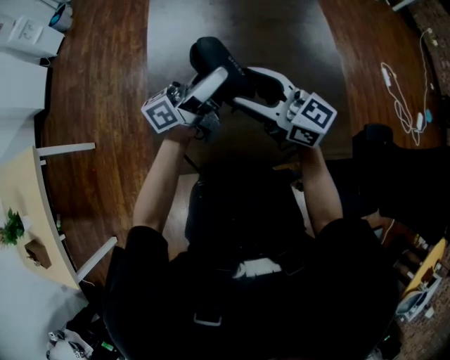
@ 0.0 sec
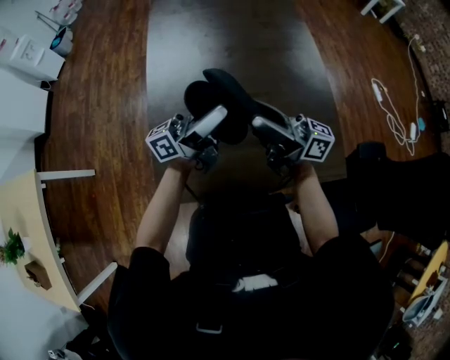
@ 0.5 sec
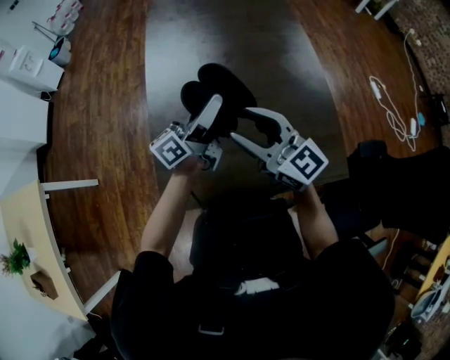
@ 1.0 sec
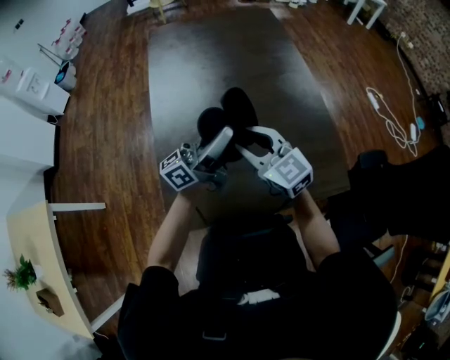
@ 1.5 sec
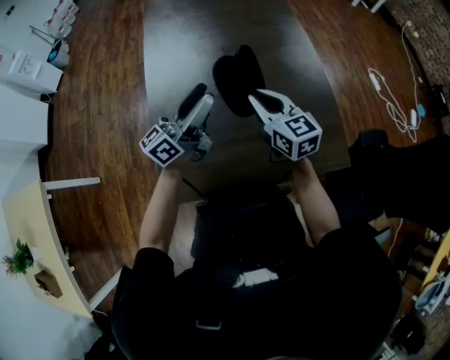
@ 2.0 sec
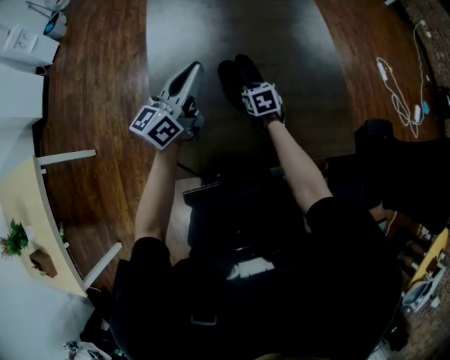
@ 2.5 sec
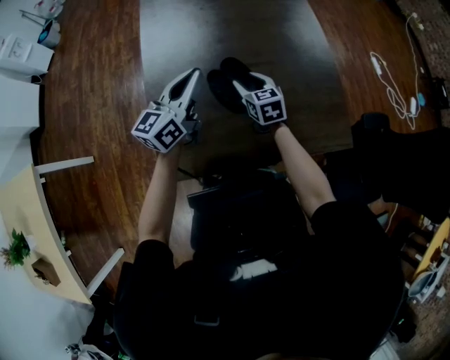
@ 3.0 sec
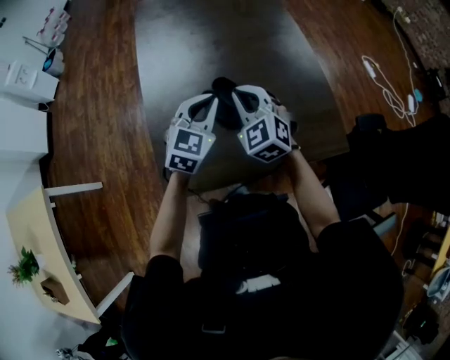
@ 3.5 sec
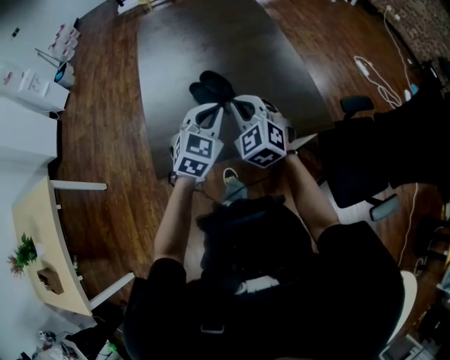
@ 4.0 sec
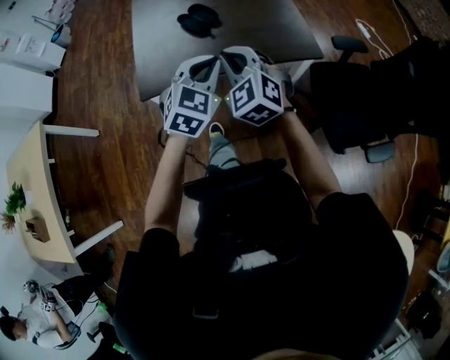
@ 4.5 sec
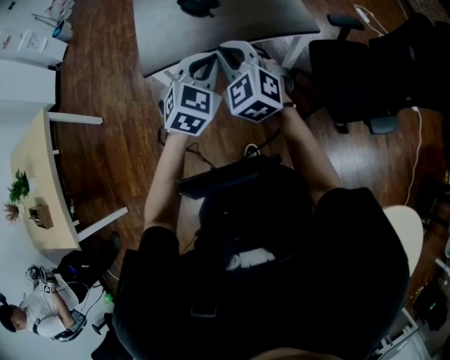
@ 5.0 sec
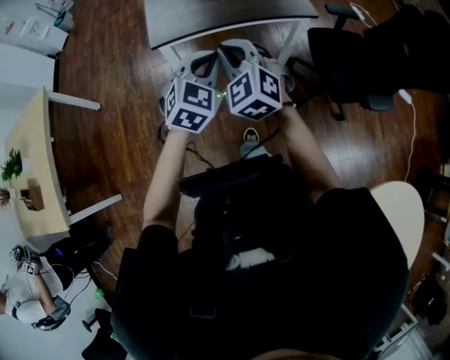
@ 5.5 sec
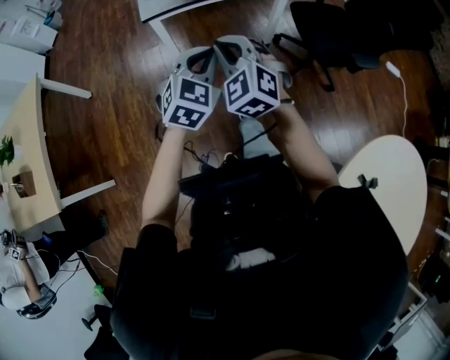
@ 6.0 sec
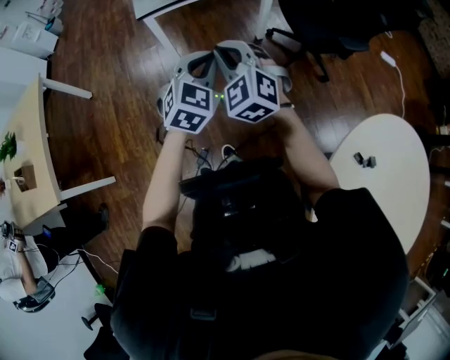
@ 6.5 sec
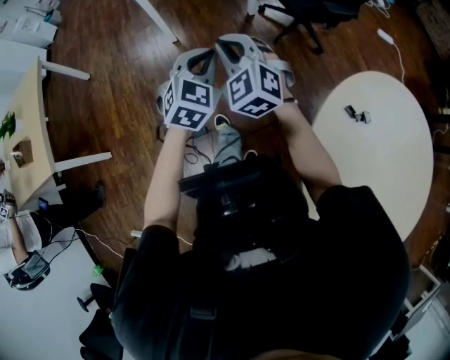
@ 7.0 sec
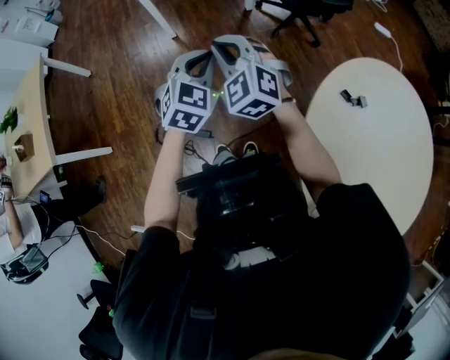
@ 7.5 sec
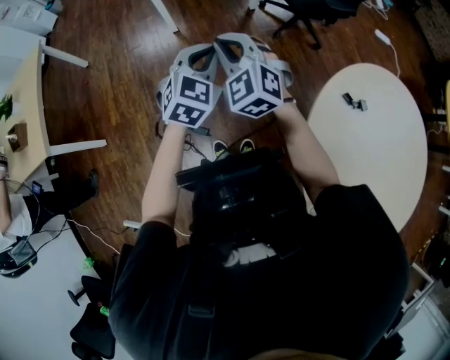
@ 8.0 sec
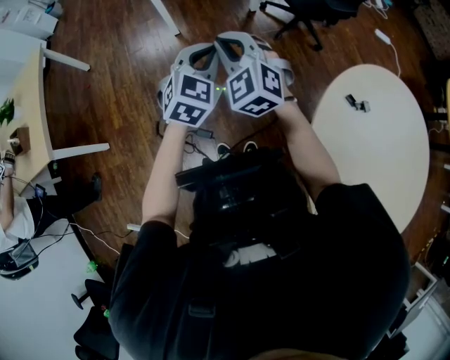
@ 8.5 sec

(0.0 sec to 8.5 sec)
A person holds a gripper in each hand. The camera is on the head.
0.0 sec - 2.0 sec: The right gripper heads to the right and forward, covering approximately 10 cm, rotates approximately 30 degrees, and closes up.
2.0 sec - 4.0 sec: The right gripper heads backward, covering roughly 20 cm, moves some 25 cm downward and comes back, turns by some 40 degrees, and opens, then closes again. The left gripper goes roughly 20 cm backward and to the right, angles its fingers downward, by approximately 50 degrees, and closes up.
4.0 sec - 6.5 sec: The pair of grippers is taken backward, about 70 cm.
6.5 sec - 8.5 sec: Both grippers move backward, roughly 20 cm.

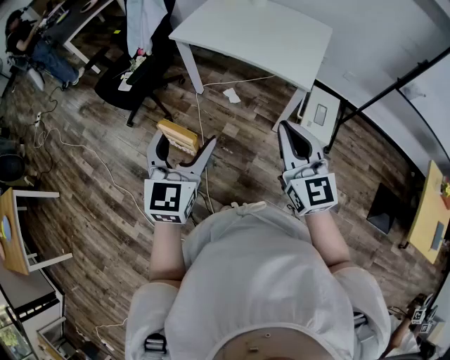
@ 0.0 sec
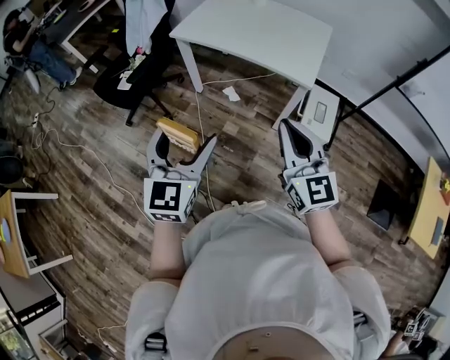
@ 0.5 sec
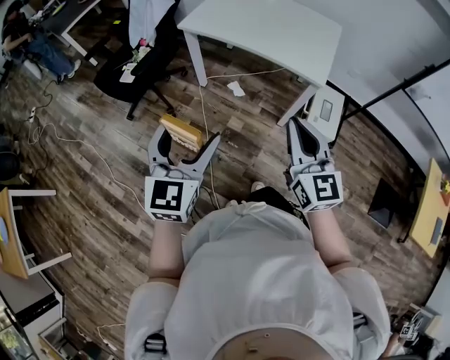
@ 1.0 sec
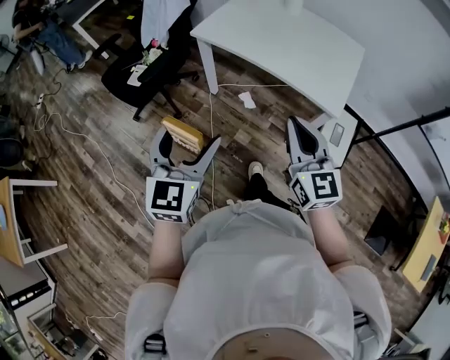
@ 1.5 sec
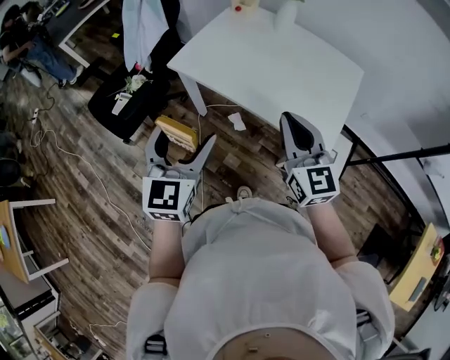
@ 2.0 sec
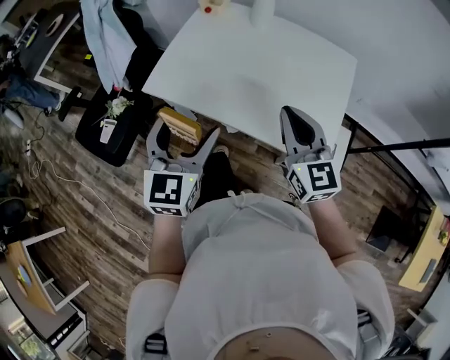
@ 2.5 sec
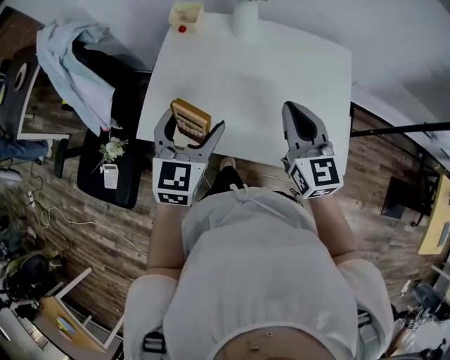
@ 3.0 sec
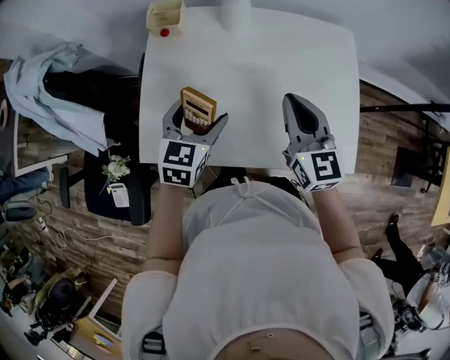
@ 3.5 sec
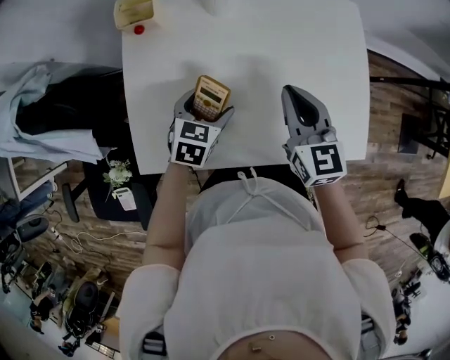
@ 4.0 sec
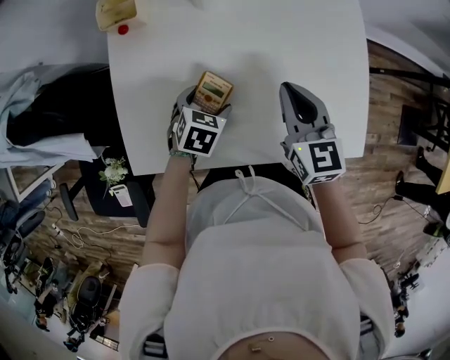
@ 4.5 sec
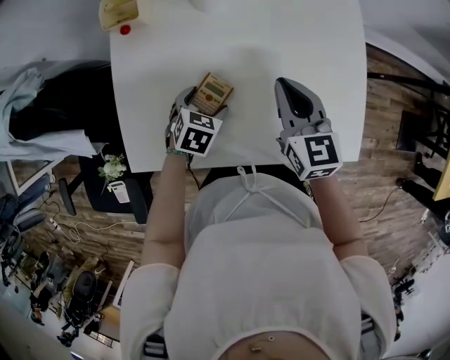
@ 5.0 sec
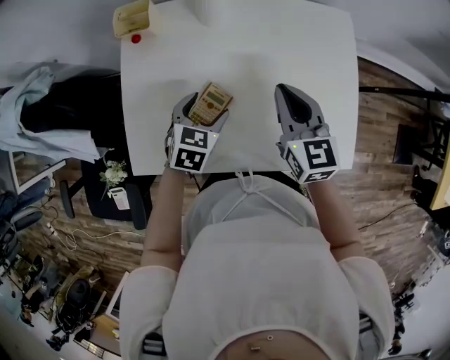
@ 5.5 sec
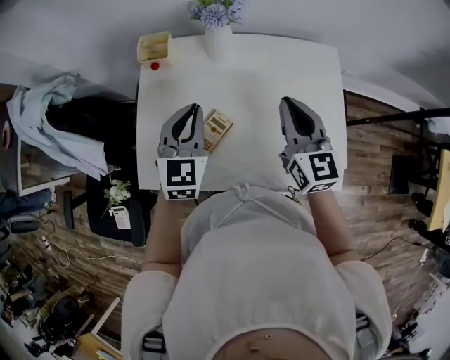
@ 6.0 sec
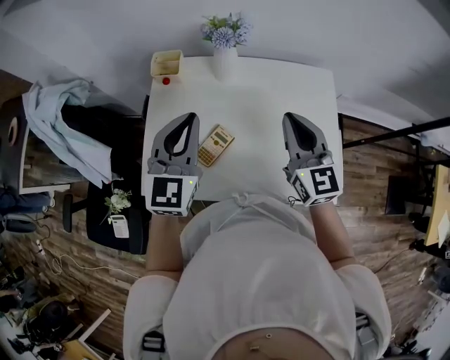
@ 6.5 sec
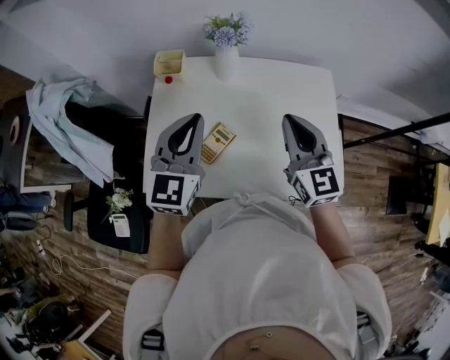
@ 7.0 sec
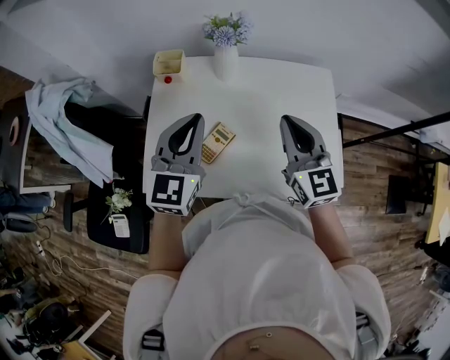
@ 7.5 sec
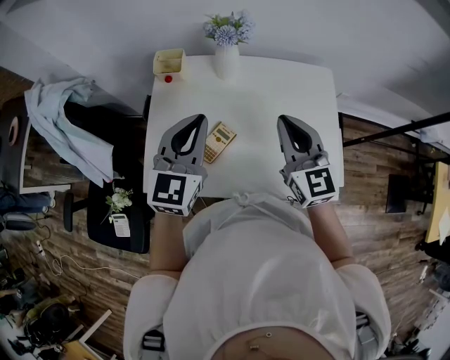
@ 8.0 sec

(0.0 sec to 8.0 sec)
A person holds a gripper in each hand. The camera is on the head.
0.0 sec - 2.0 sec: Both grippers move forward, roughly 35 cm.
2.0 sec - 4.0 sec: The right gripper ends up approximately 40 cm from where it was, and turns by approximately 40 degrees; the left gripper ends up some 60 cm from where it was, and tilts its fingers roughly 40 degrees downward.
4.0 sec - 6.0 sec: The right gripper heads upward, covering roughly 10 cm. Meanwhile the left gripper shifts about 20 cm upward, changes its angle by some 40 degrees, and closes up.
6.0 sec - 8.0 sec: The right gripper ends up roughly 5 cm from where it was, while the left gripper heads upward, covering roughly 10 cm.

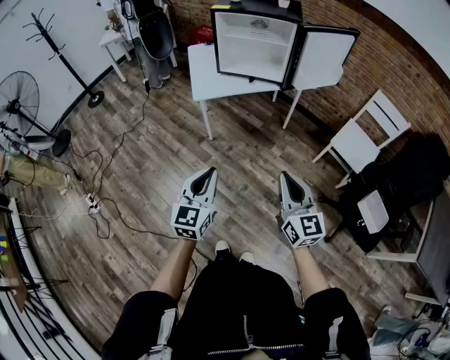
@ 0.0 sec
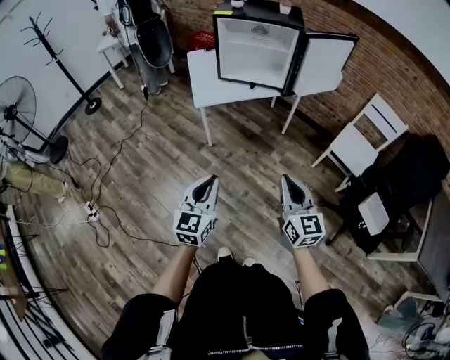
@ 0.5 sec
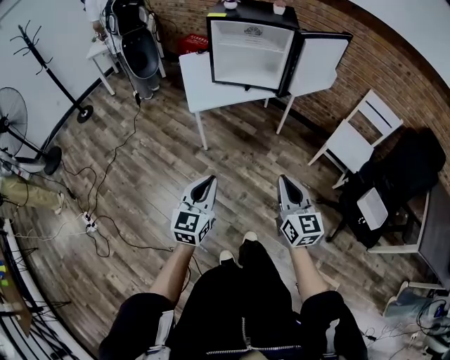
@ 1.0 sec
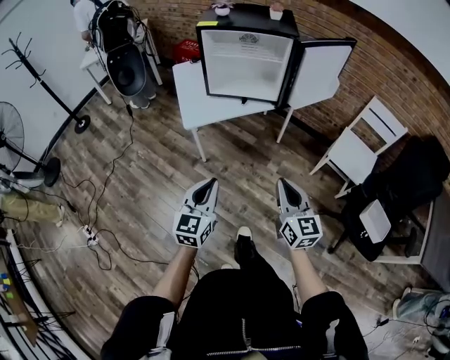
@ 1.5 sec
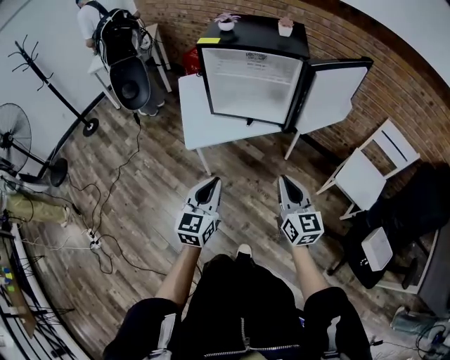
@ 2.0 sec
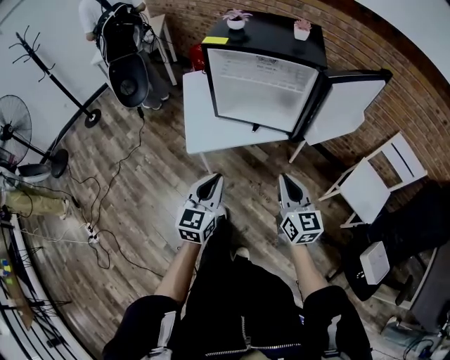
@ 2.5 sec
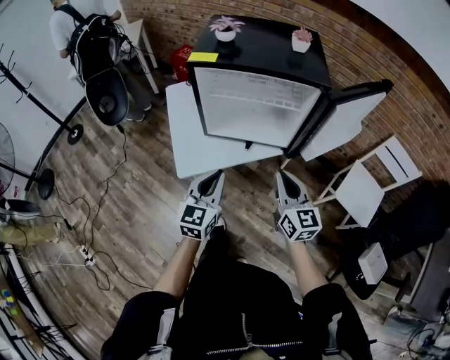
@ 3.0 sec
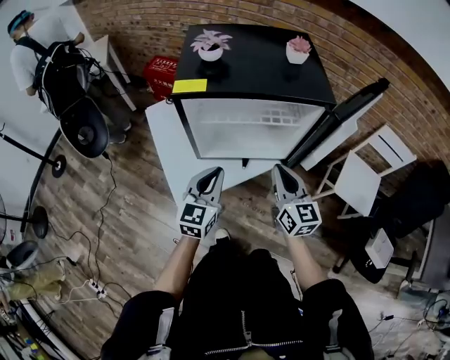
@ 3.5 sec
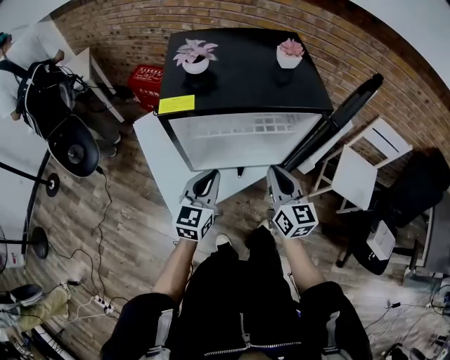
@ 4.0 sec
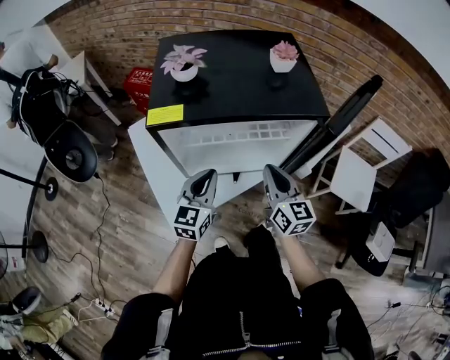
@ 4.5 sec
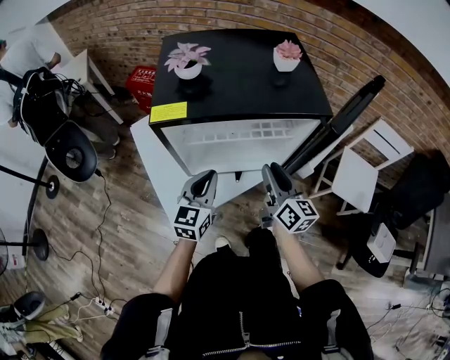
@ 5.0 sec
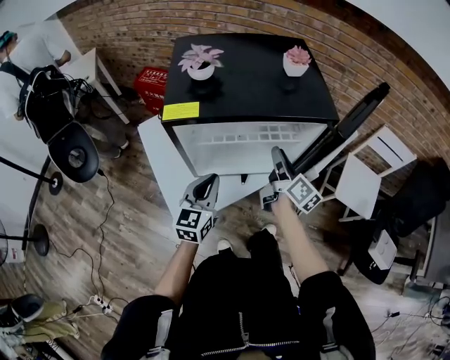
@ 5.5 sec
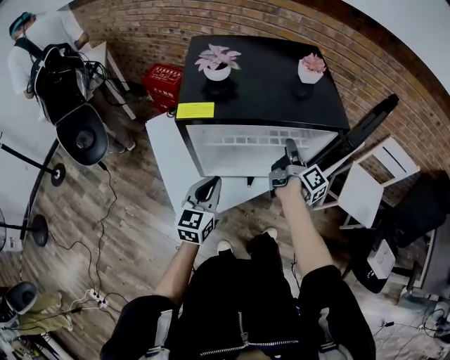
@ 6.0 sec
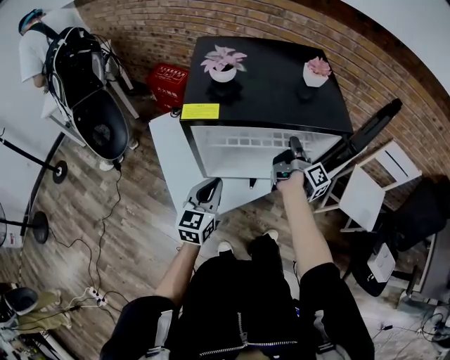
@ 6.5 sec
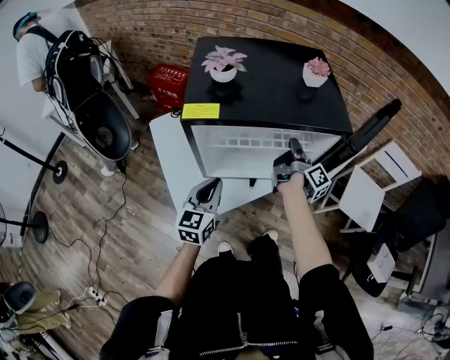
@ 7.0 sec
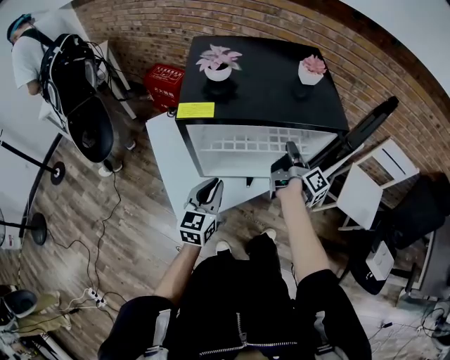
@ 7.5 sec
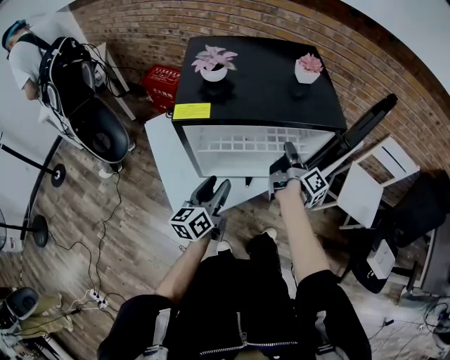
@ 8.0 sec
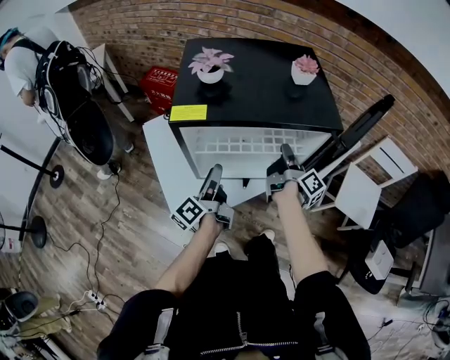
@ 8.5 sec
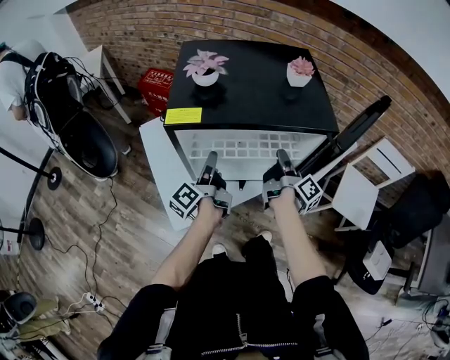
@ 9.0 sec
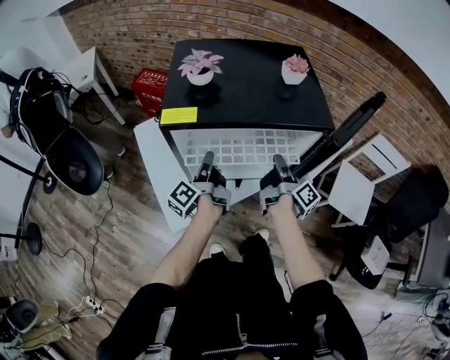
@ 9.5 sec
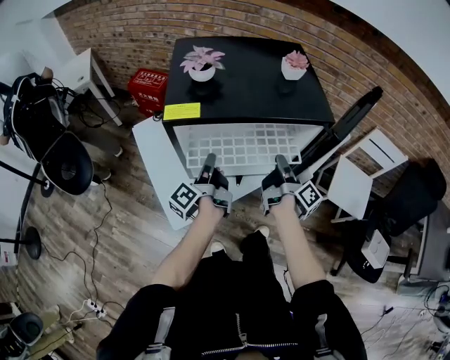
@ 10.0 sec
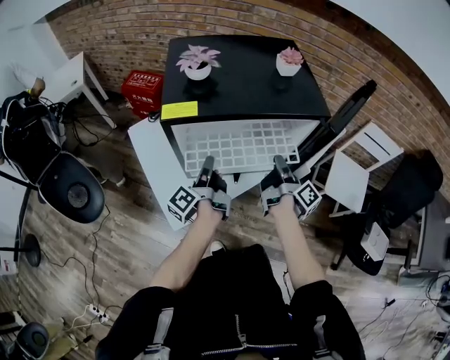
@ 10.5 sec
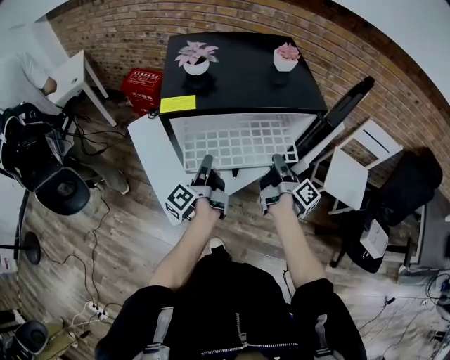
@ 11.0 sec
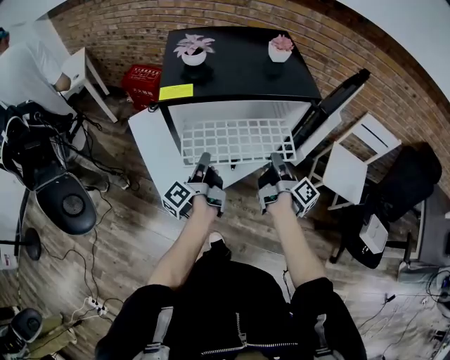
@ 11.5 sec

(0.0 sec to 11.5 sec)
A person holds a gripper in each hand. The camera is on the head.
0.0 sec - 2.0 sec: The two grippers go some 25 cm forward.
2.0 sec - 4.0 sec: The two grippers go some 35 cm forward.
4.0 sec - 6.0 sec: The right gripper shifts approximately 15 cm forward, rotates around the line of its fingers by approximately 70 degrees, clockwise from behind, and opens up.
6.0 sec - 7.5 sec: The right gripper closes up.
7.5 sec - 9.5 sec: The left gripper travels forward by roughly 10 cm, rolls counterclockwise, seen from behind, by about 70 degrees, and opens, then closes once more.
9.5 sec - 11.5 sec: The two grippers go approximately 10 cm backward.
